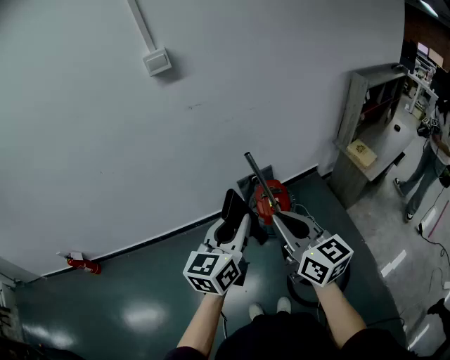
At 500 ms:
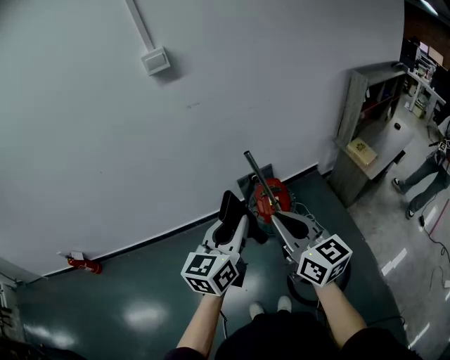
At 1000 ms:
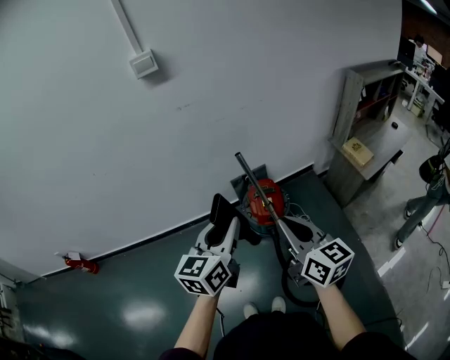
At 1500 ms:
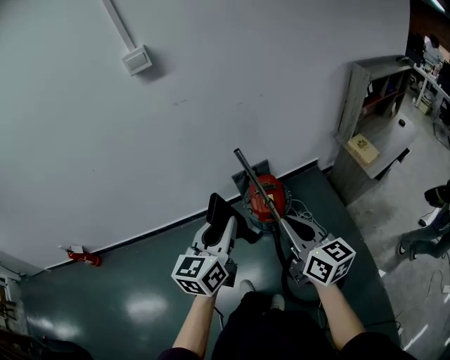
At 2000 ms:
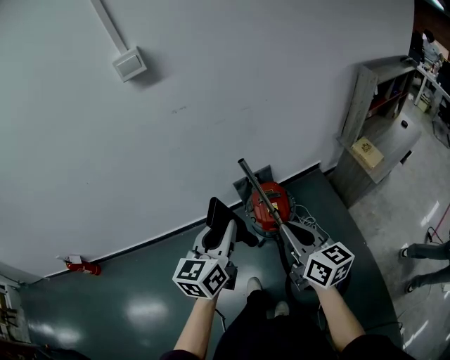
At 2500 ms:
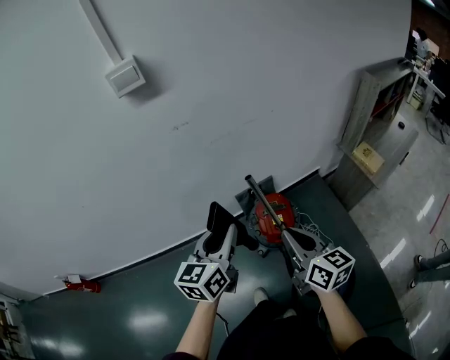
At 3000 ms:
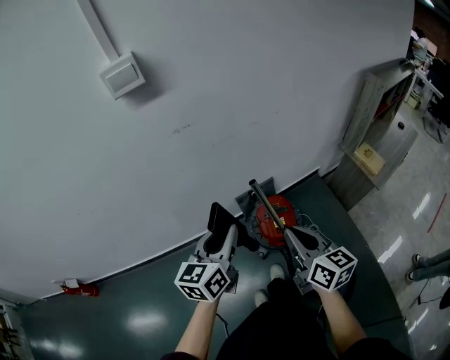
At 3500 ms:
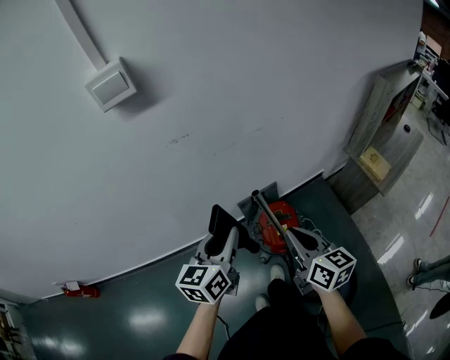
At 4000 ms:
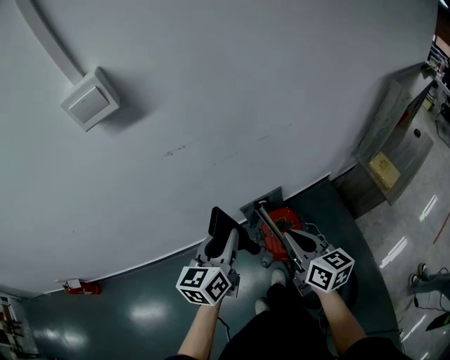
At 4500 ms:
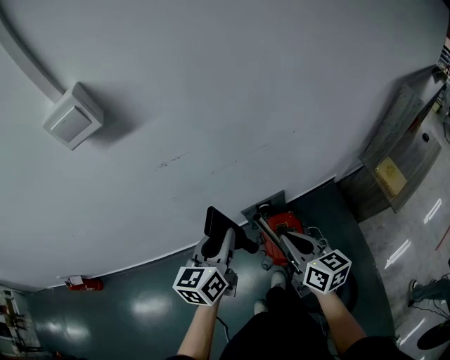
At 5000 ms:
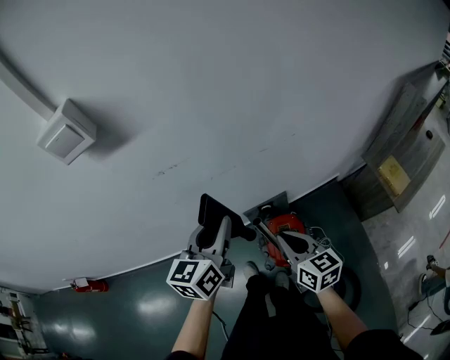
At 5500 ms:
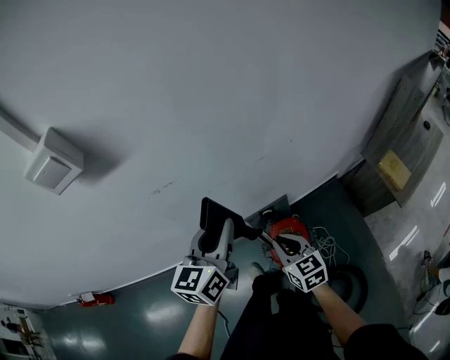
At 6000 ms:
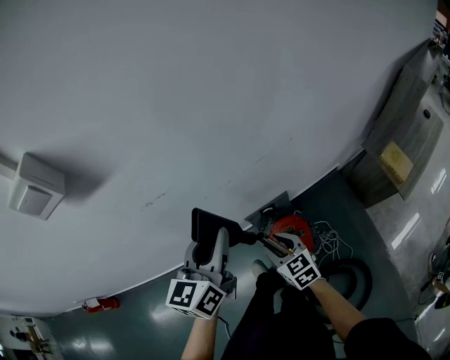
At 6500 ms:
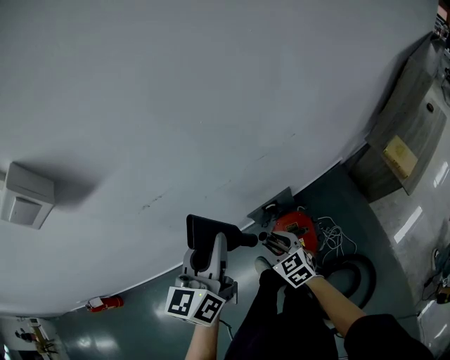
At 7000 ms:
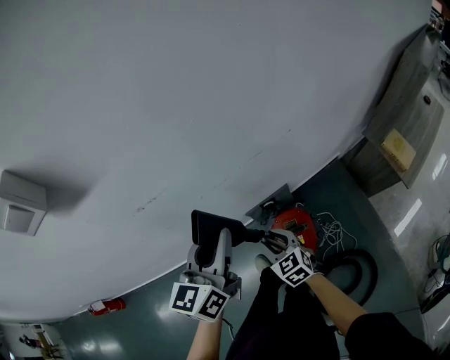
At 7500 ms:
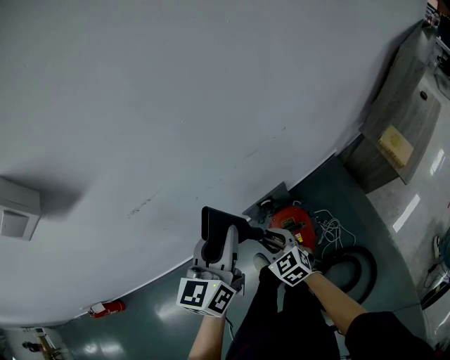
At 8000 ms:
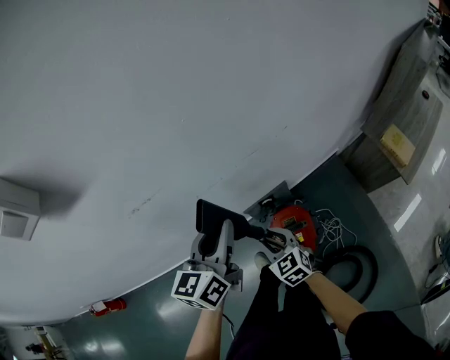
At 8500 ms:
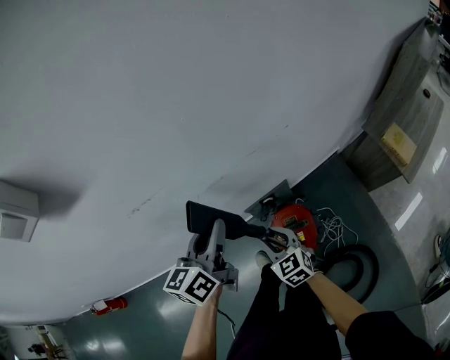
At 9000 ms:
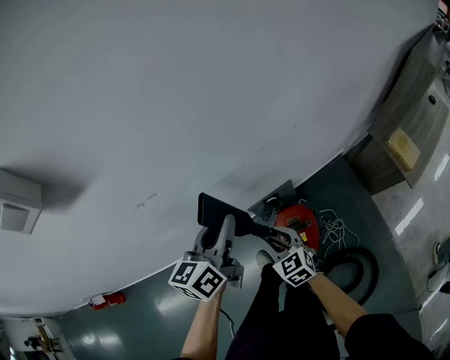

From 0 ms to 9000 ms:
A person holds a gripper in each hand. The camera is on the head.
From 0 ms to 2000 ms: The left gripper goes about 10 cm forward and downward. Meanwhile the right gripper travels forward, downward and to the right by some 15 cm.
From 2000 ms to 4500 ms: The grippers both shift forward by roughly 30 cm.
From 4500 ms to 7000 ms: The right gripper goes some 20 cm downward and forward, rotates approximately 40 degrees, and opens. The left gripper heads forward, covering approximately 10 cm.
From 7000 ms to 9000 ms: The left gripper changes place by approximately 5 cm.

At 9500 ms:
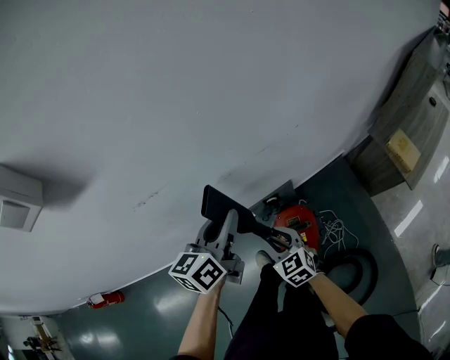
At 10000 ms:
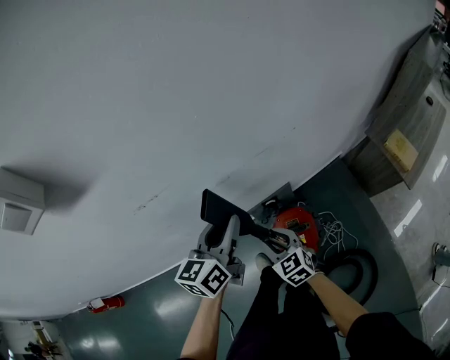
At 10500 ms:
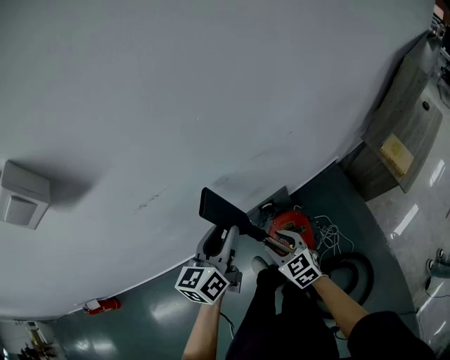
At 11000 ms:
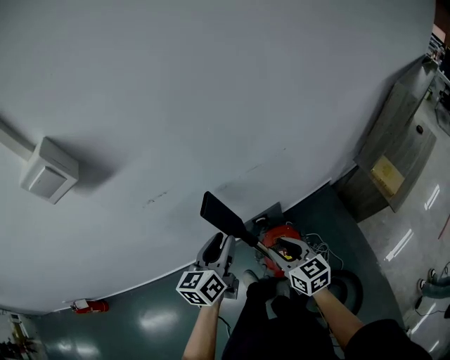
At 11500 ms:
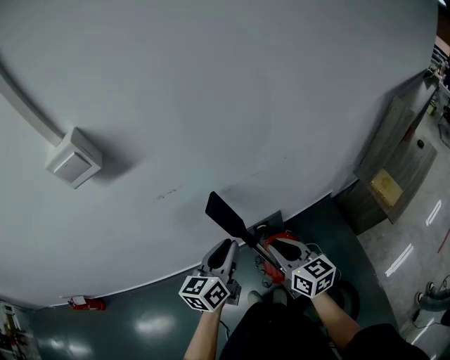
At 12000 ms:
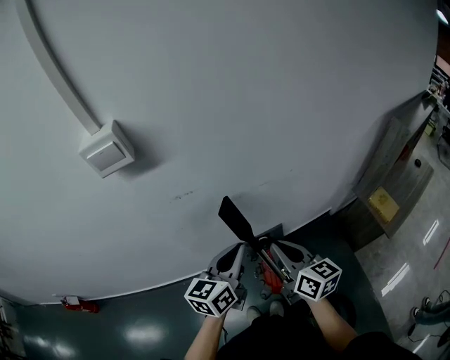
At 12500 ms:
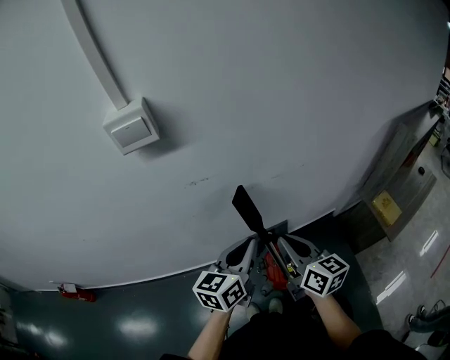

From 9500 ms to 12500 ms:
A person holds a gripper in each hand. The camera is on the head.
From 9500 ms to 11000 ms: The left gripper travels backward by some 5 cm. Meanwhile the right gripper heads upward and to the right, covering about 10 cm, and changes its angle by approximately 20 degrees.
From 11000 ms to 12500 ms: The left gripper is displaced upward and backward by some 15 cm, and closes its fingers, while the right gripper moves upward, roughly 15 cm, and closes.

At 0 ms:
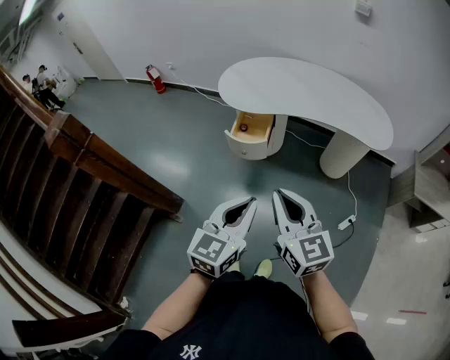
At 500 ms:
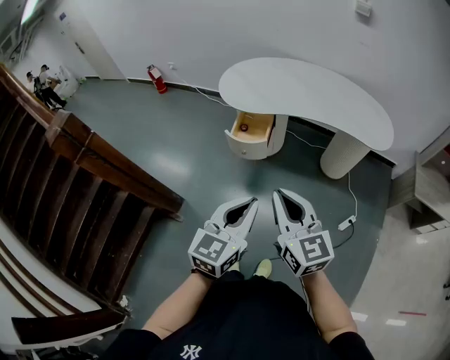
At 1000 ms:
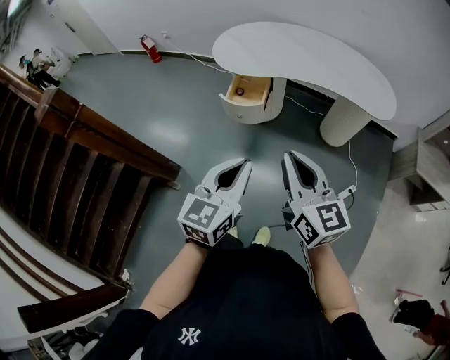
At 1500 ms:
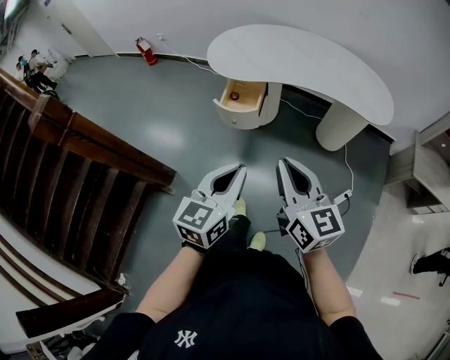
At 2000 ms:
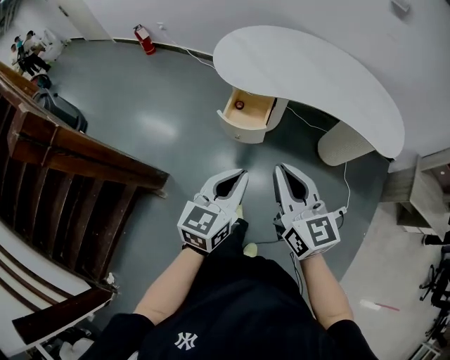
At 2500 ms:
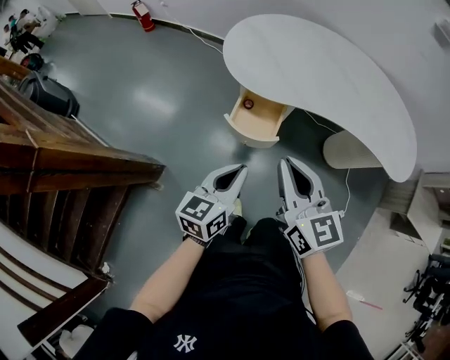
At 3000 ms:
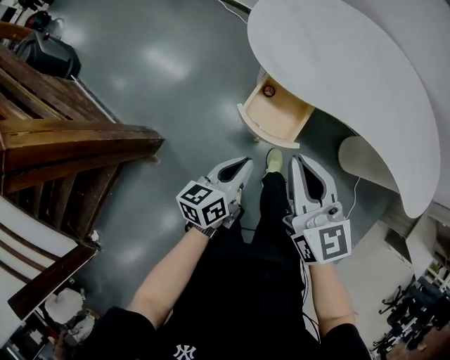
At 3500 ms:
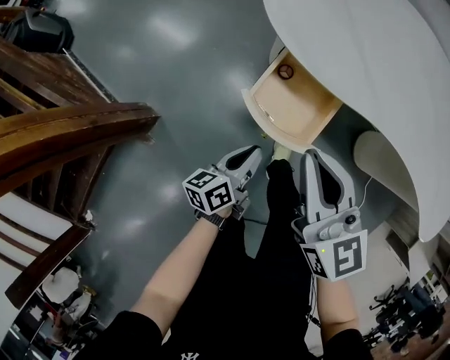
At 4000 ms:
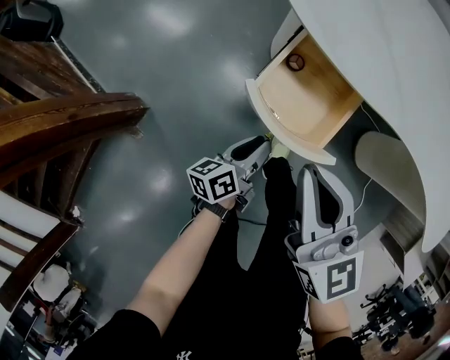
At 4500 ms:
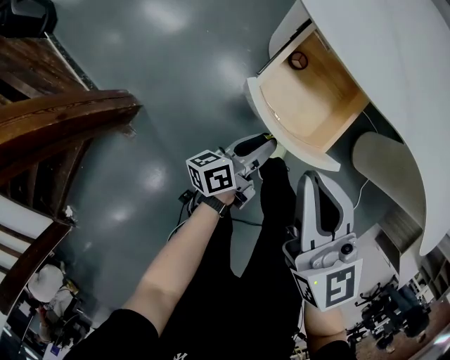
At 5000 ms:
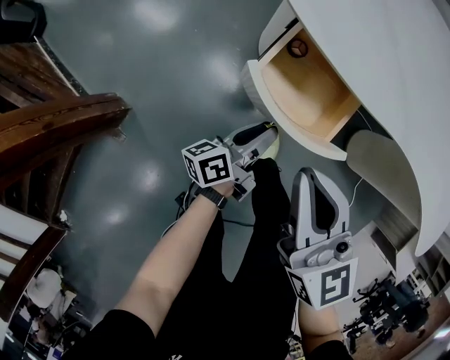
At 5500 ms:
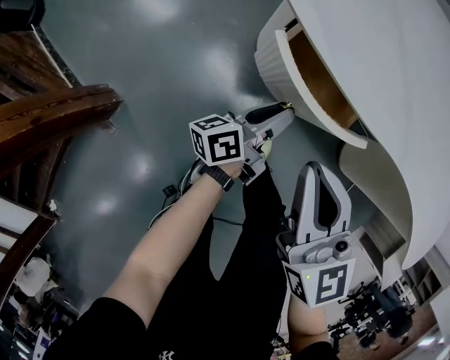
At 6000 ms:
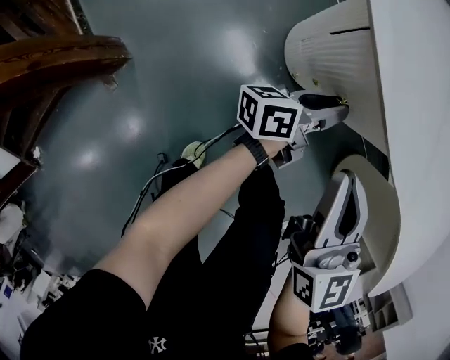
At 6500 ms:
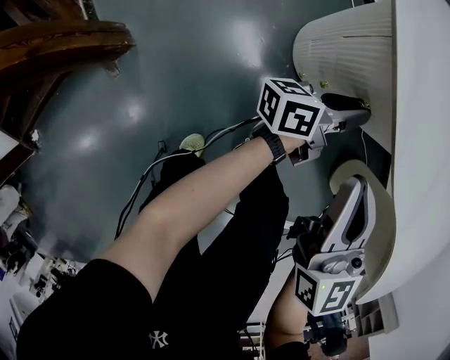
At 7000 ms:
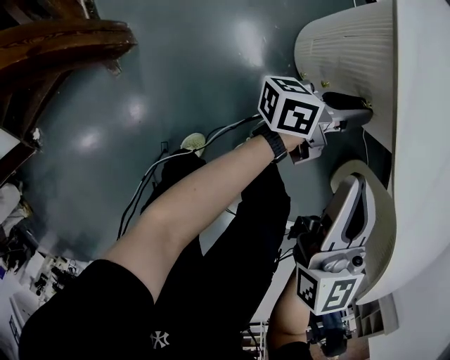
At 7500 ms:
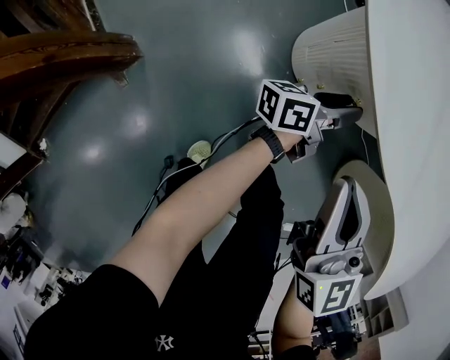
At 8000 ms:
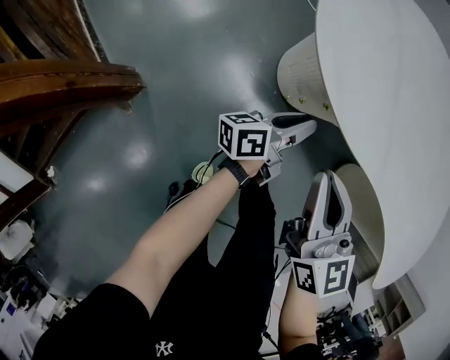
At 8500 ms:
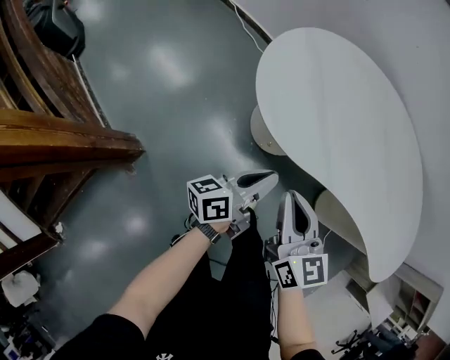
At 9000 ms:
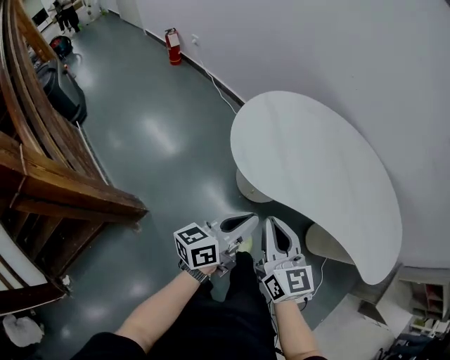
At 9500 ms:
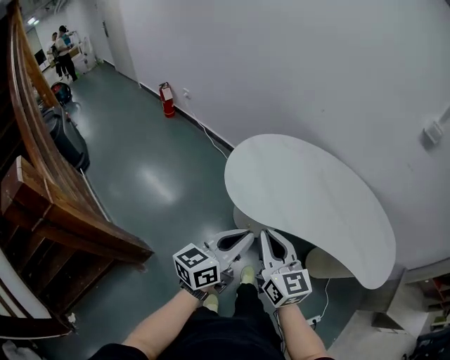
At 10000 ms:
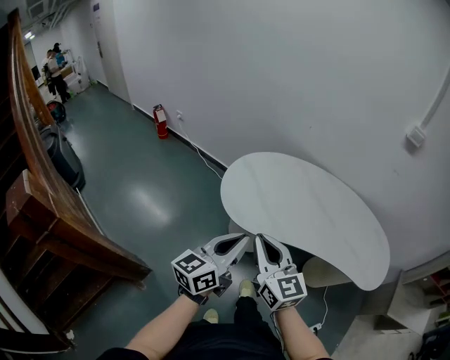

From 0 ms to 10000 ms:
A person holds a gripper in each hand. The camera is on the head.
From 0 ms to 2000 ms: The right gripper is displaced forward by some 15 cm. The left gripper is displaced forward and downward by approximately 15 cm.
From 2000 ms to 4000 ms: Both grippers move downward and forward, some 40 cm. The left gripper rotates around the line of its fingers by roughly 50 degrees, counterclockwise from behind.
From 4000 ms to 6000 ms: The left gripper moves forward and to the right, approximately 20 cm, and swivels roughly 20 degrees. Meanwhile the right gripper moves forward and downward, some 10 cm.
From 6000 ms to 8000 ms: The grippers both shift upward by roughly 5 cm.
From 8000 ms to 10000 ms: Both grippers move upward, about 40 cm. The left gripper twists some 40 degrees clockwise, seen from behind.

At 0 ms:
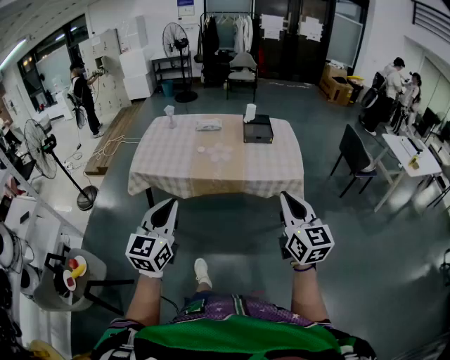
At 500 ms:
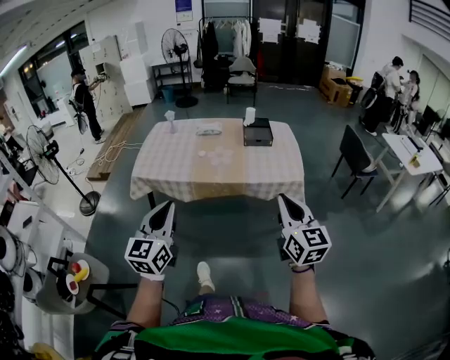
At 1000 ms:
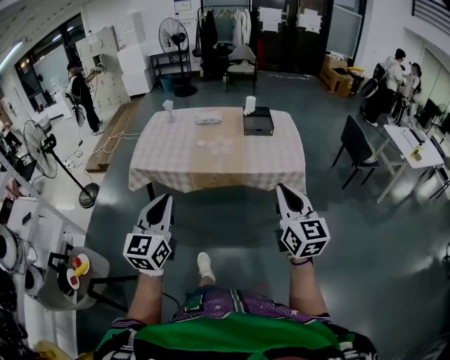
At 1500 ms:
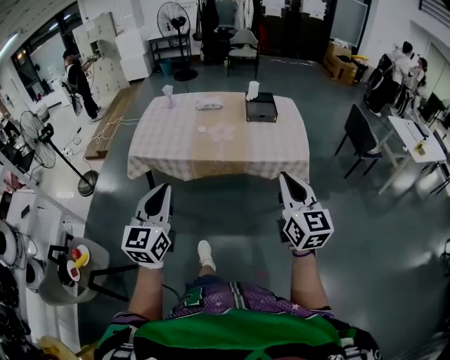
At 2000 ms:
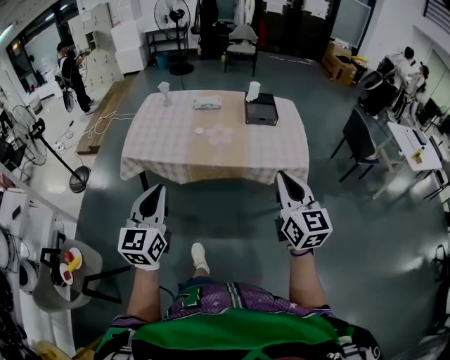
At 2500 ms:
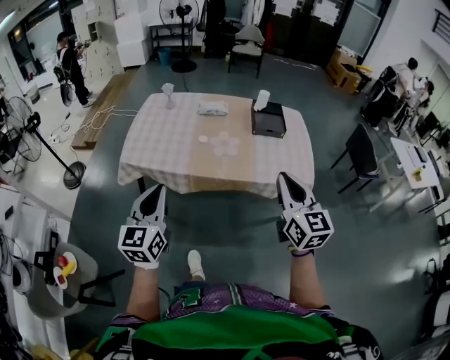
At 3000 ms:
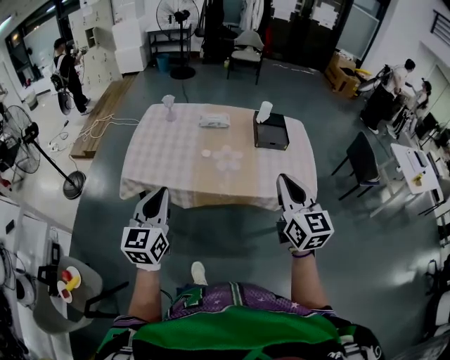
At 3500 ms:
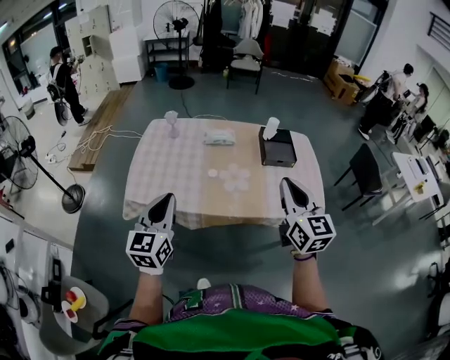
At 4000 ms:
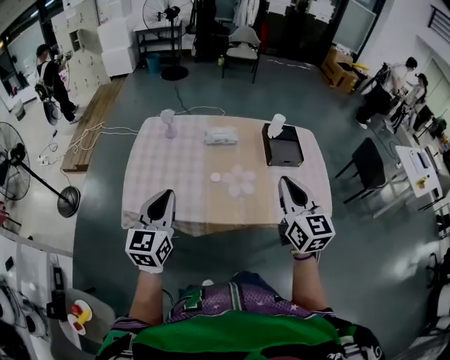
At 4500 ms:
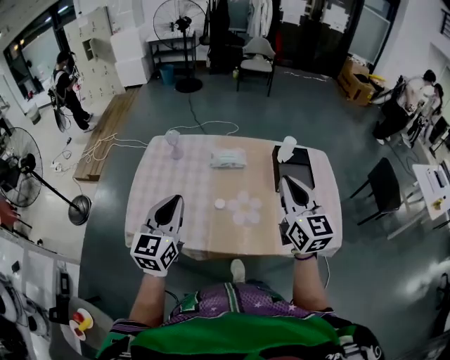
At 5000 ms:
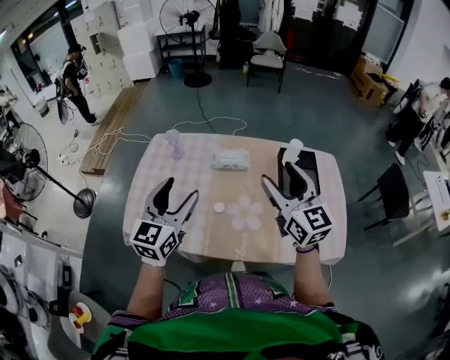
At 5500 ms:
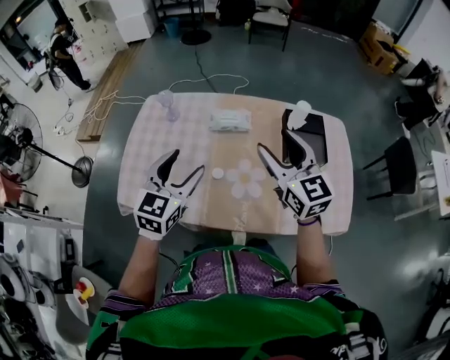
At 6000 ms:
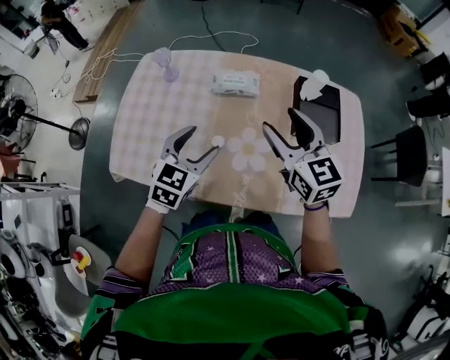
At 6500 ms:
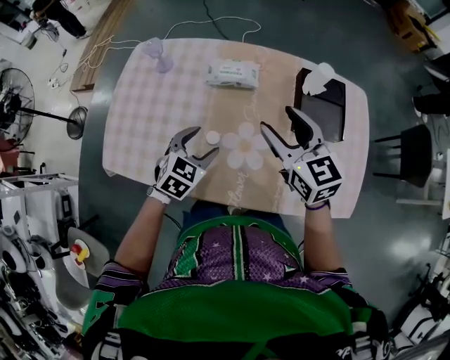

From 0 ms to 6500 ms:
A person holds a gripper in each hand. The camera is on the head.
From 0 ms to 2000 ms: Both grippers travel together forward, approximately 10 cm.
From 2000 ms to 4500 ms: The pair of grippers is taken forward, some 50 cm.
From 4500 ms to 6500 ms: The right gripper heads downward and forward, covering approximately 25 cm, rotates roughly 30 degrees, and opens, while the left gripper goes about 35 cm downward, forward and to the right, angles its fingers downward, by roughly 40 degrees, and opens its fingers.
